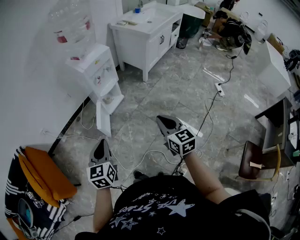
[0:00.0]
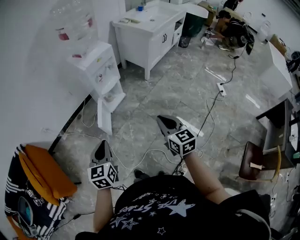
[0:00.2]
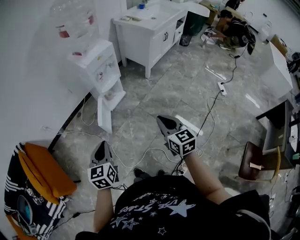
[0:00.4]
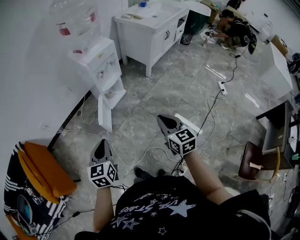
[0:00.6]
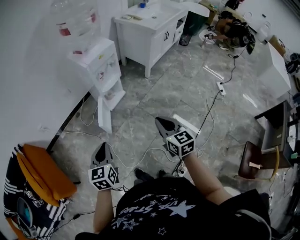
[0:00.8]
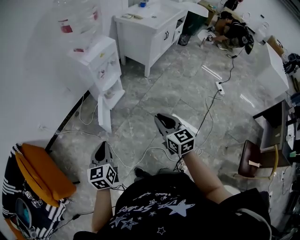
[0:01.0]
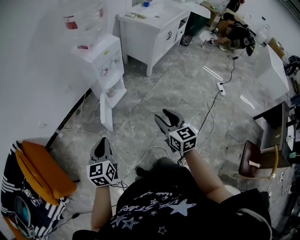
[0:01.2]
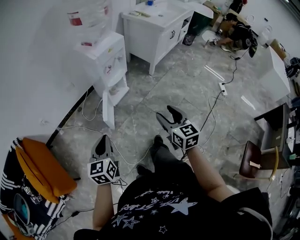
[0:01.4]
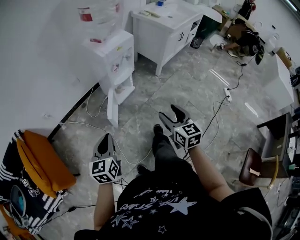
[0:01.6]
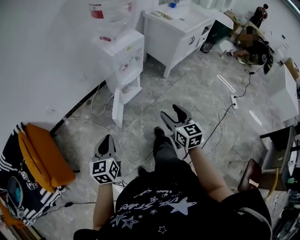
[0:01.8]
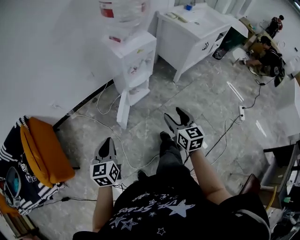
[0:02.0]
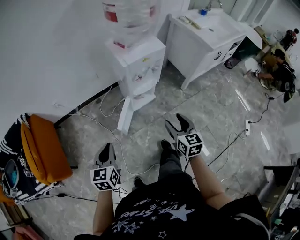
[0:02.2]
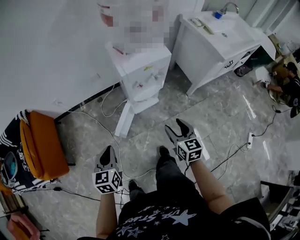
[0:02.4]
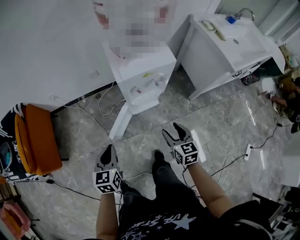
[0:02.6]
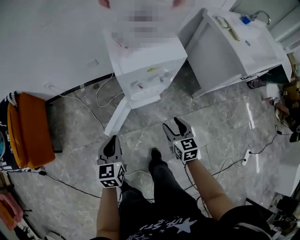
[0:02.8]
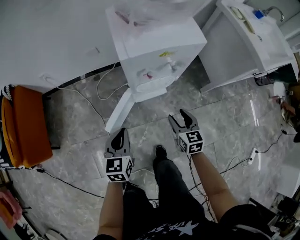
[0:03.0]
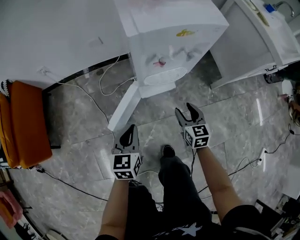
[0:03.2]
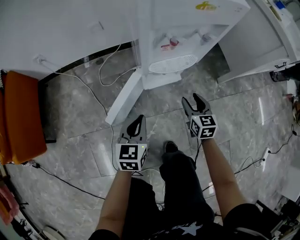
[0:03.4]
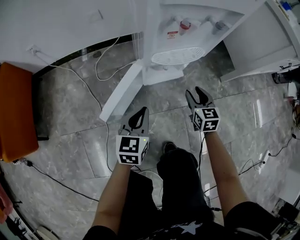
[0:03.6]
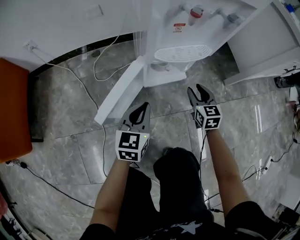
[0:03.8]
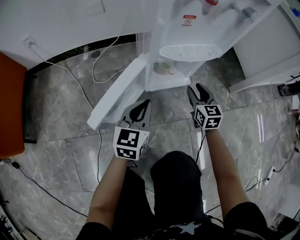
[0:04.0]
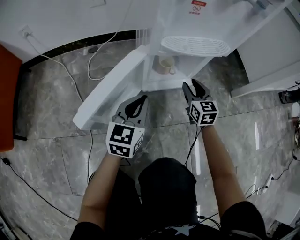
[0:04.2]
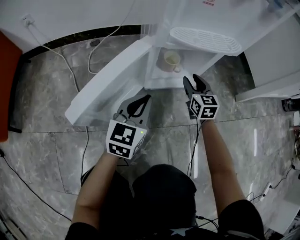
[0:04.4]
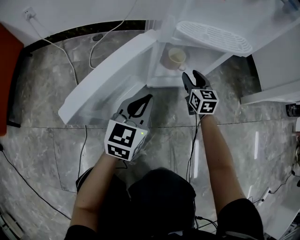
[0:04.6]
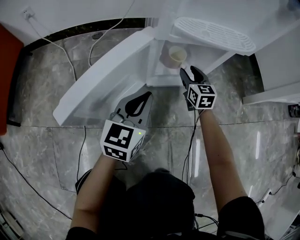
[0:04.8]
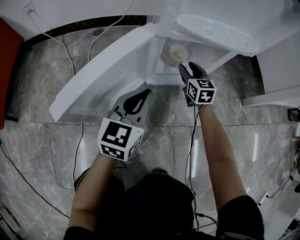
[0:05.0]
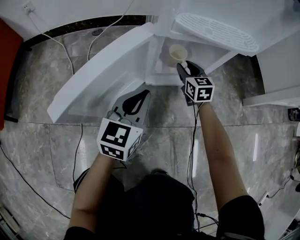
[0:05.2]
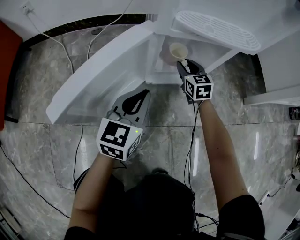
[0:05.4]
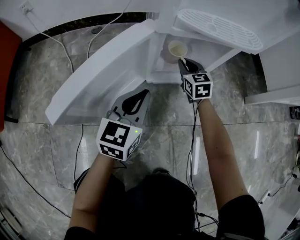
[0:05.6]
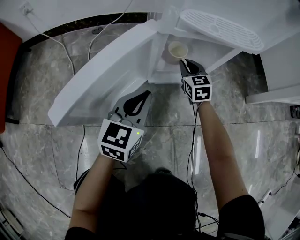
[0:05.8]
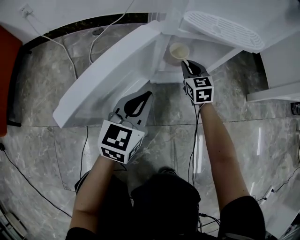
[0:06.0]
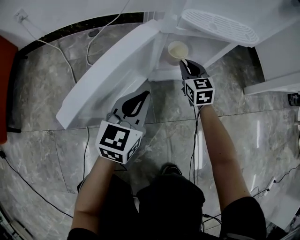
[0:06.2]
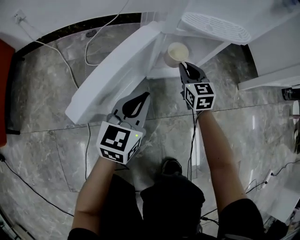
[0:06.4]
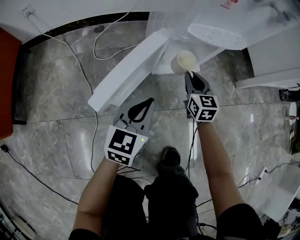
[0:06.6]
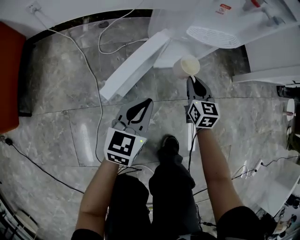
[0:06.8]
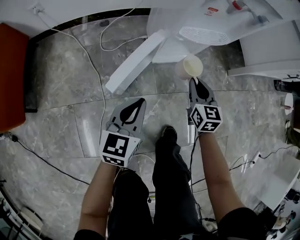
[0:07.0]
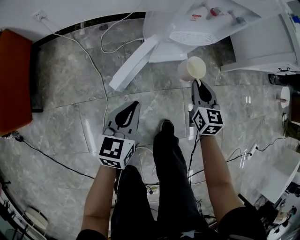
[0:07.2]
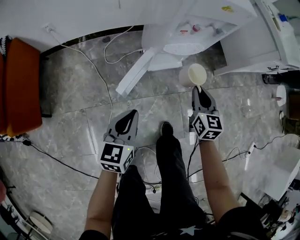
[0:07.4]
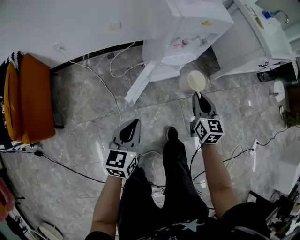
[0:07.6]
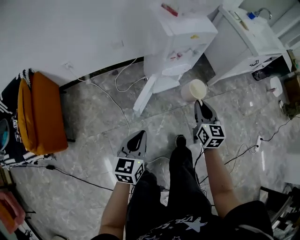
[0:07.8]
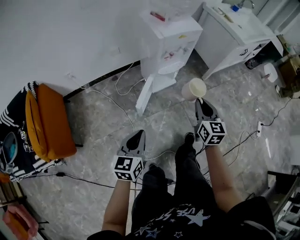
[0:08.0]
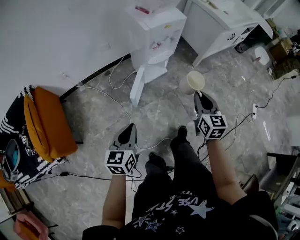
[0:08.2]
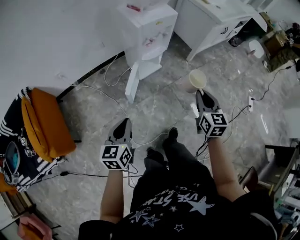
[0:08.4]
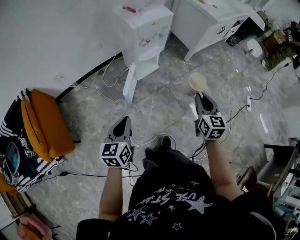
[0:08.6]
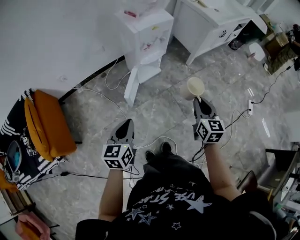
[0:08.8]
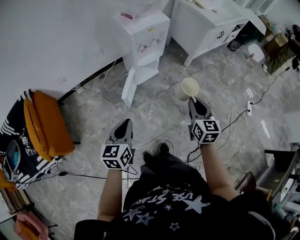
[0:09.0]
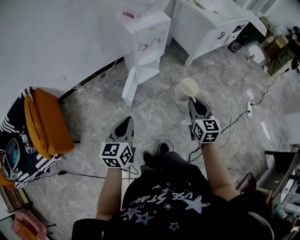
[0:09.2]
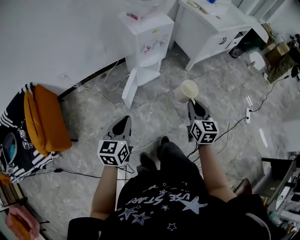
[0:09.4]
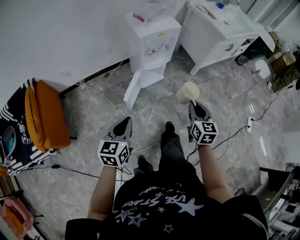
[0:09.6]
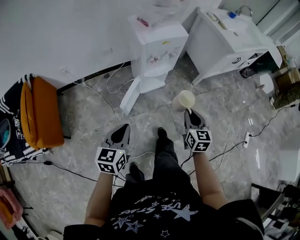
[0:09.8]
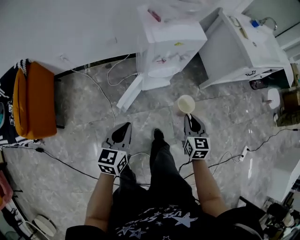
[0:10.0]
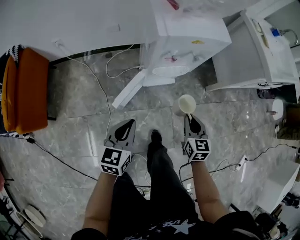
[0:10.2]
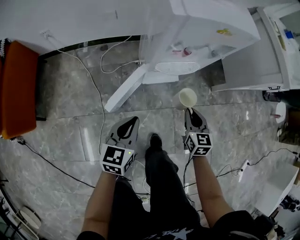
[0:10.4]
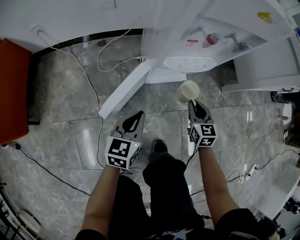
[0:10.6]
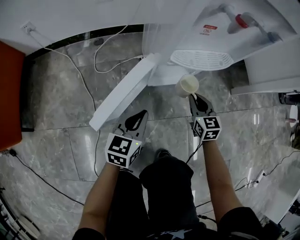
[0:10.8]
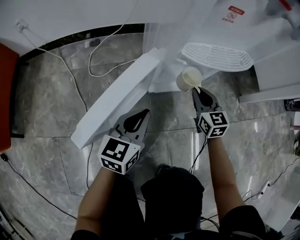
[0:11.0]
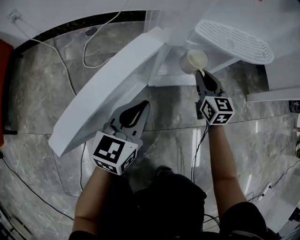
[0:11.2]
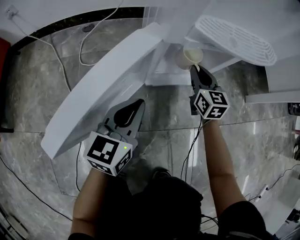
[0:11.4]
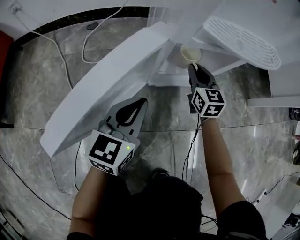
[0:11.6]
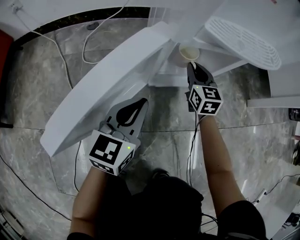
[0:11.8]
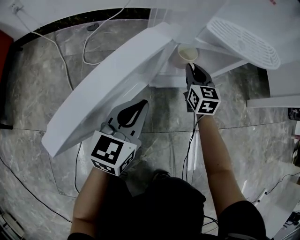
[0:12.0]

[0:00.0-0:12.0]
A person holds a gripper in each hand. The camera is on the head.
0.0 to 1.6 s: The right gripper heads to the left and forward, covering approximately 10 cm, and opens its fingers, while the left gripper is displaced to the left by roughly 10 cm.
1.6 to 3.0 s: The left gripper moves about 40 cm, and turns by about 30 degrees; the right gripper shifts by approximately 50 cm, and rotates approximately 30 degrees.
3.0 to 4.4 s: The right gripper goes approximately 40 cm downward and forward. Meanwhile the left gripper moves downward, some 40 cm.
4.4 to 6.0 s: The right gripper is displaced to the left and downward by roughly 10 cm, and closes.
6.0 to 7.6 s: Both grippers travel together upward and backward, approximately 50 cm. The right gripper turns by roughly 30 degrees.
7.6 to 9.0 s: The left gripper moves upward and backward, some 25 cm, while the right gripper moves backward, upward and to the right, roughly 30 cm.
9.0 to 10.4 s: Both grippers travel together downward and forward, roughly 40 cm. The right gripper changes its angle by roughly 30 degrees.
10.4 to 12.0 s: The left gripper travels downward by some 35 cm; the right gripper moves downward and forward, some 40 cm.

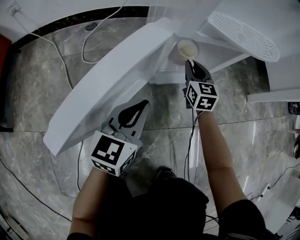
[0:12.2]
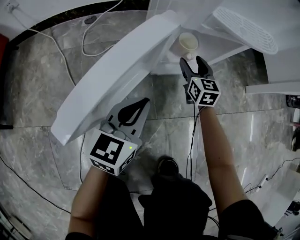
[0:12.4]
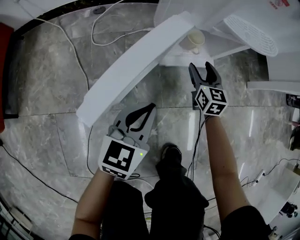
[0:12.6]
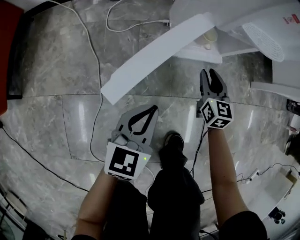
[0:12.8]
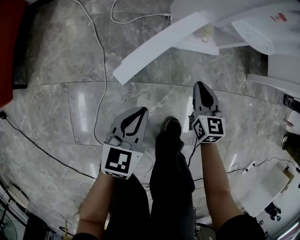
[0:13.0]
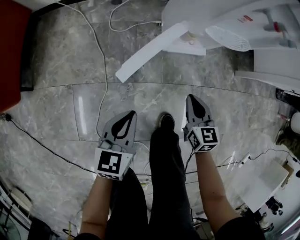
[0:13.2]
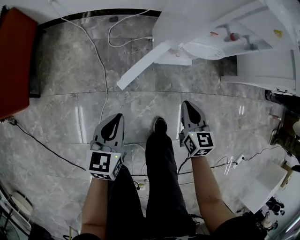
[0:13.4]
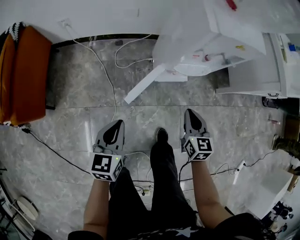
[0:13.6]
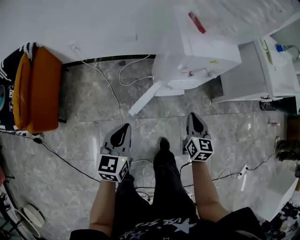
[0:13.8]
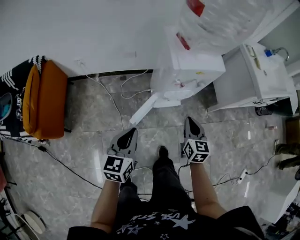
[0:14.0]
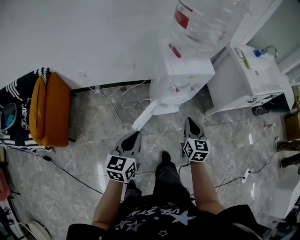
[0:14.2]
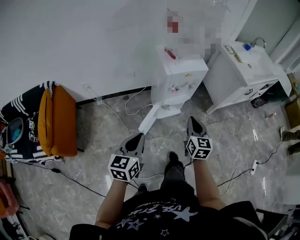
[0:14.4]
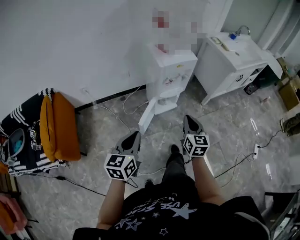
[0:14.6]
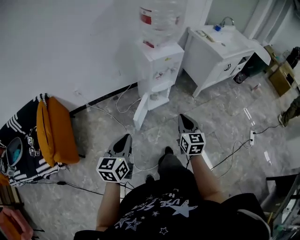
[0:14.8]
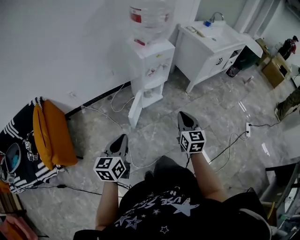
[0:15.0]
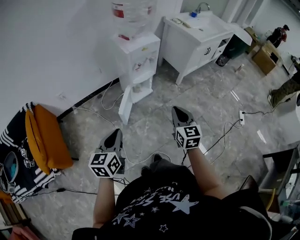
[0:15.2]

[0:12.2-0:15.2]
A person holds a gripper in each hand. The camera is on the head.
12.2 to 13.8 s: The left gripper travels upward by some 50 cm. The right gripper moves upward and backward, approximately 60 cm, and opens, then closes once more.
13.8 to 15.2 s: Both grippers travel together backward and upward, approximately 30 cm. The left gripper changes its angle by roughly 20 degrees.

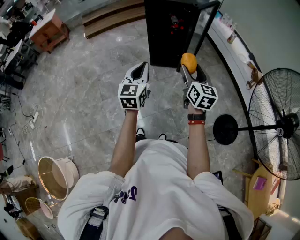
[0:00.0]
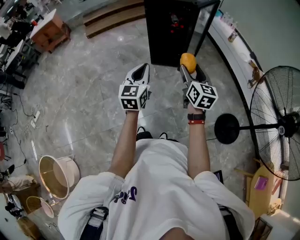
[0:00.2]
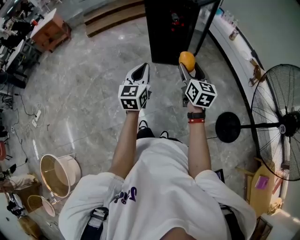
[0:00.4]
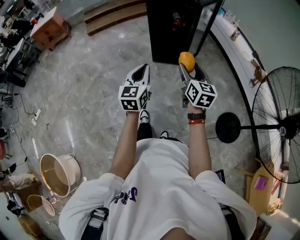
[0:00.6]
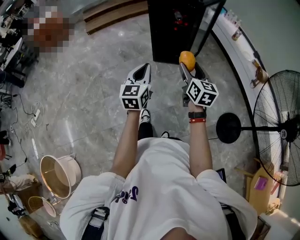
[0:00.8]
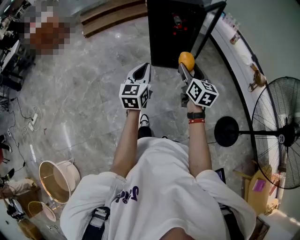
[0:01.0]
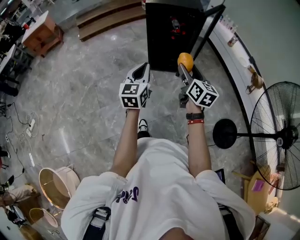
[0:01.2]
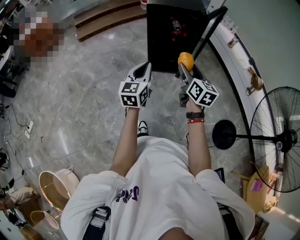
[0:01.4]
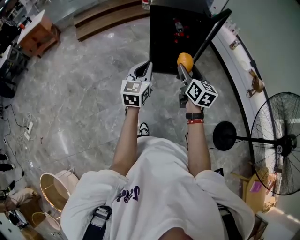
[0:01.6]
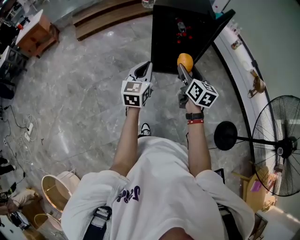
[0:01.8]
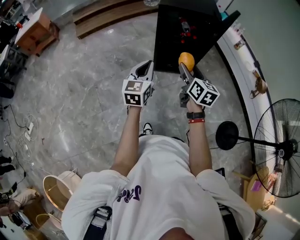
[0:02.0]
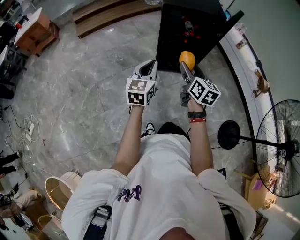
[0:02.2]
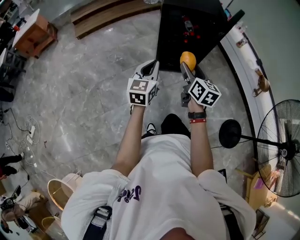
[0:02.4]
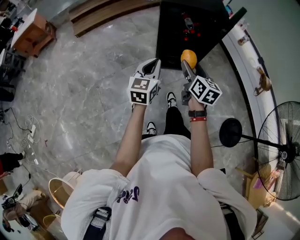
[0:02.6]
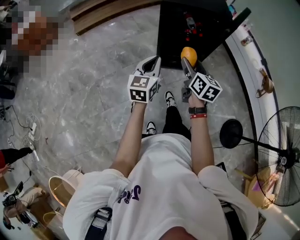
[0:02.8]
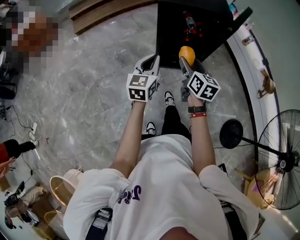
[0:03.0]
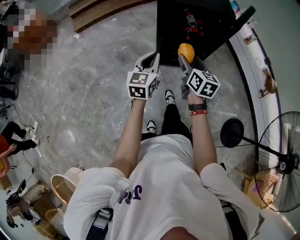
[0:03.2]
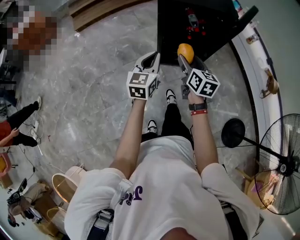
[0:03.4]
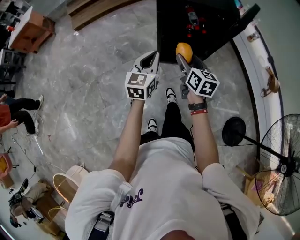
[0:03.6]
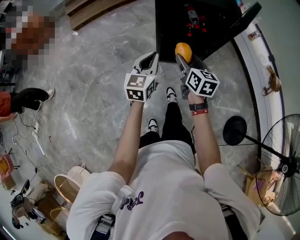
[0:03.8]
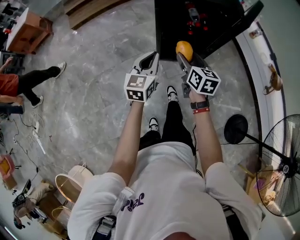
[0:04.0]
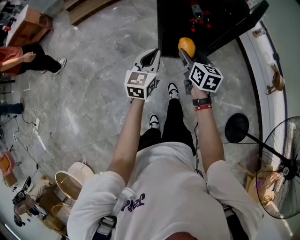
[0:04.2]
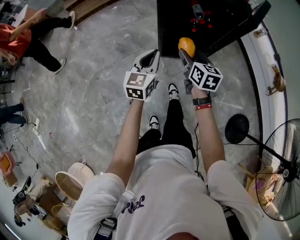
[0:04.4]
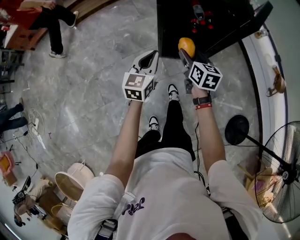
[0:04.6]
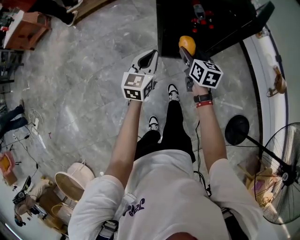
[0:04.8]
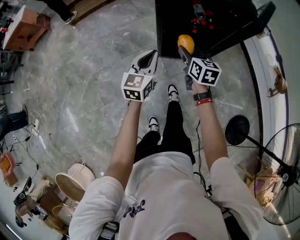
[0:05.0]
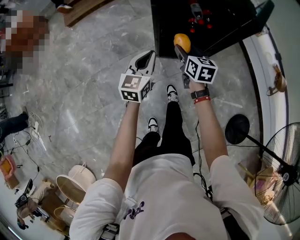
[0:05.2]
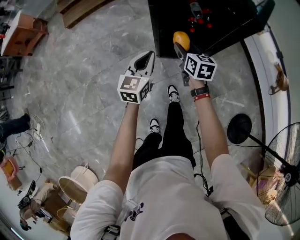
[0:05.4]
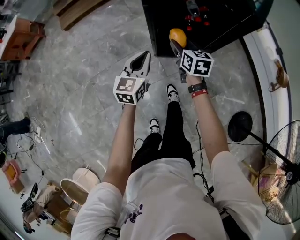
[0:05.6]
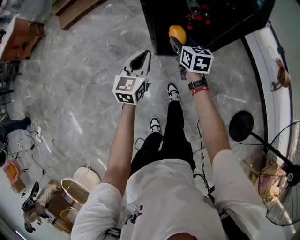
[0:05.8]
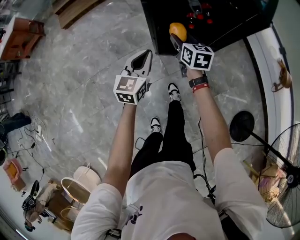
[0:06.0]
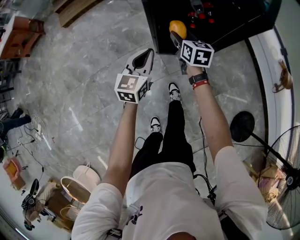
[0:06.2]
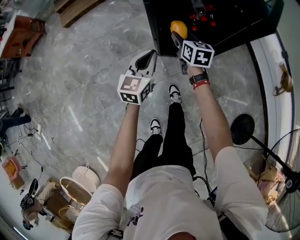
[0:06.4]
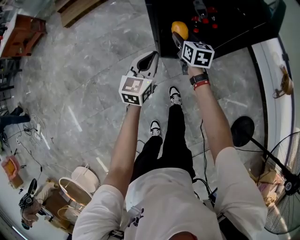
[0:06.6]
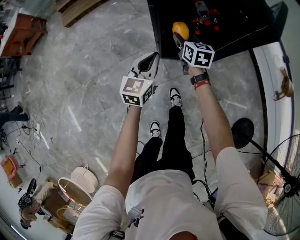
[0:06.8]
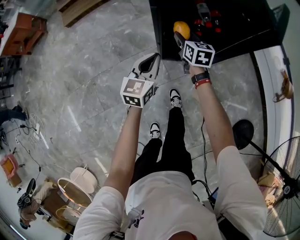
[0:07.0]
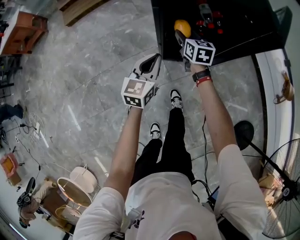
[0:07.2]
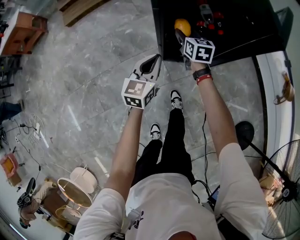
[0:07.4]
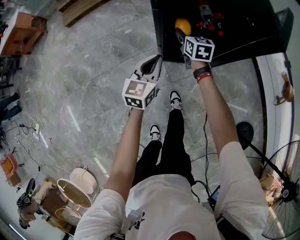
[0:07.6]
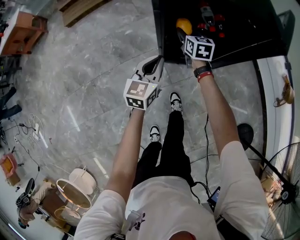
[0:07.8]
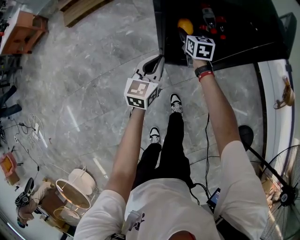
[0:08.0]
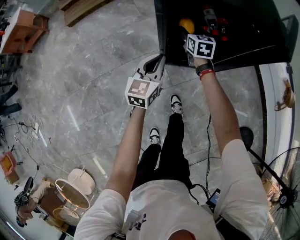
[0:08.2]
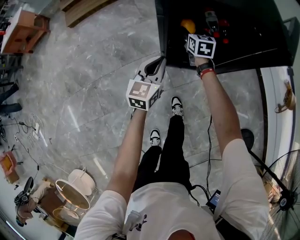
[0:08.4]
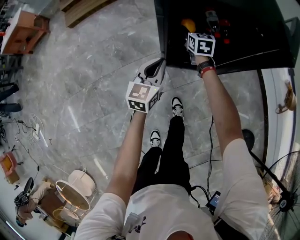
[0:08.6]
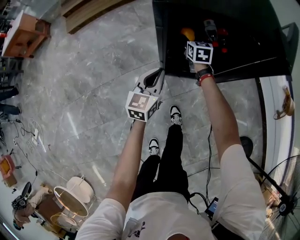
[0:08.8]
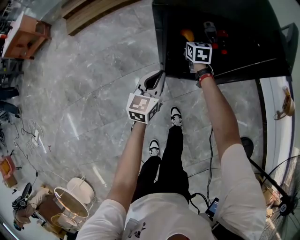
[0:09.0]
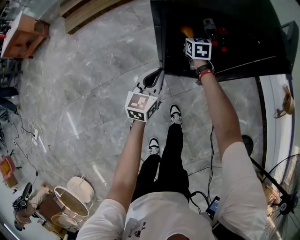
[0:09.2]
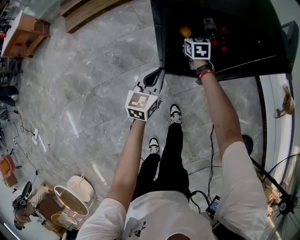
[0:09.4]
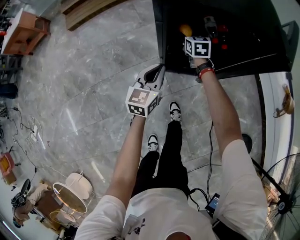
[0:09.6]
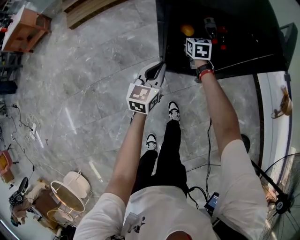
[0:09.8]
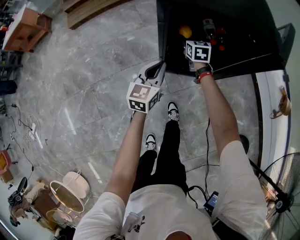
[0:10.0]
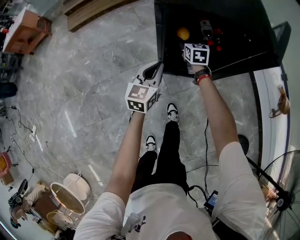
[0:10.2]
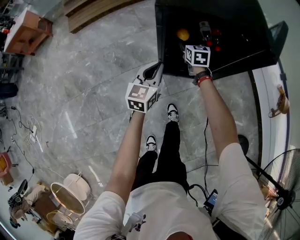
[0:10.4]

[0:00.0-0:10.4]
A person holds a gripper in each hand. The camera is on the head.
0.0 to 1.4 s: The right gripper travels forward and to the left by about 20 cm, while the left gripper moves forward, roughly 20 cm.
1.4 to 3.0 s: The right gripper heads forward and to the left, covering some 25 cm. Meanwhile the left gripper moves forward, some 25 cm.
3.0 to 4.4 s: Both grippers travel together downward and forward, about 15 cm.
4.4 to 6.0 s: The right gripper travels forward and downward by about 15 cm. Meanwhile the left gripper travels downward and forward by roughly 10 cm.
6.0 to 7.4 s: The left gripper changes place by about 5 cm; the right gripper shifts roughly 10 cm forward.
7.4 to 9.0 s: The right gripper heads forward, covering about 10 cm.
9.0 to 10.4 s: The left gripper is displaced upward by roughly 5 cm. Meanwhile the right gripper heads backward, covering approximately 5 cm.
